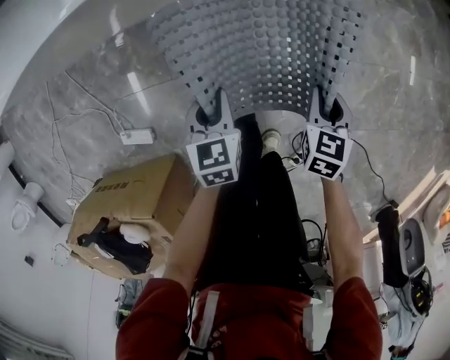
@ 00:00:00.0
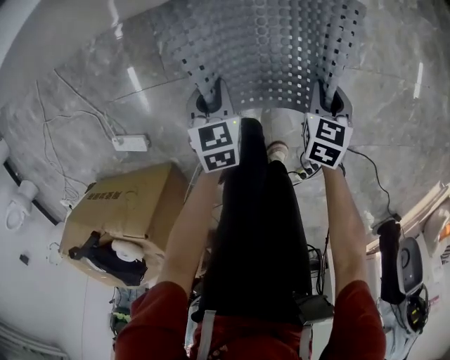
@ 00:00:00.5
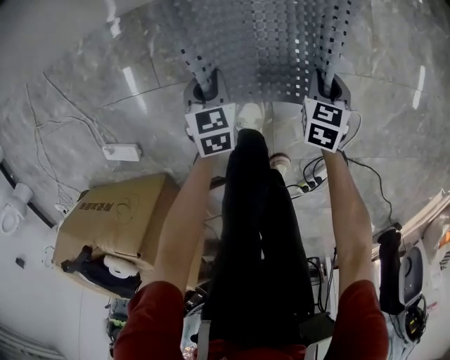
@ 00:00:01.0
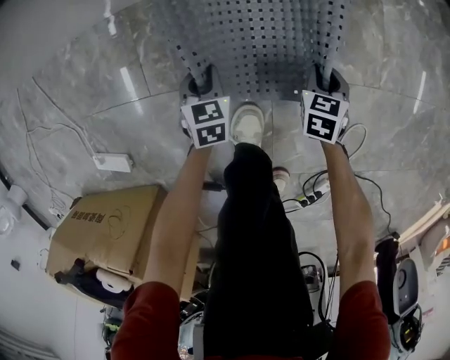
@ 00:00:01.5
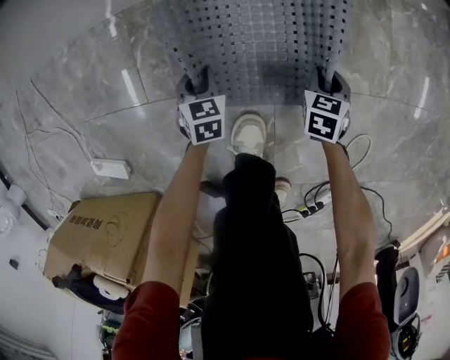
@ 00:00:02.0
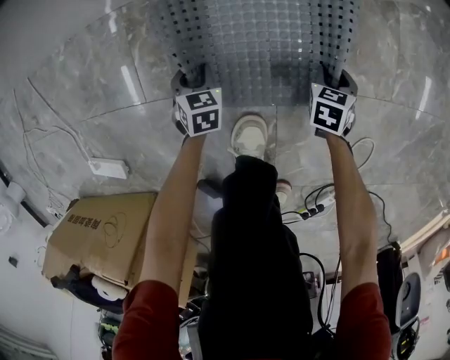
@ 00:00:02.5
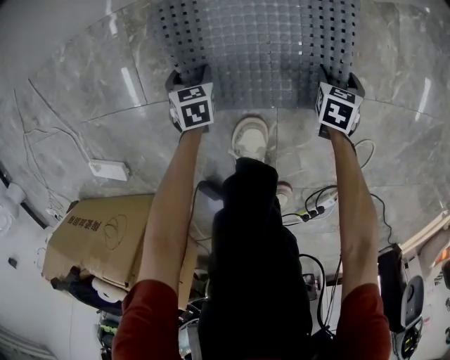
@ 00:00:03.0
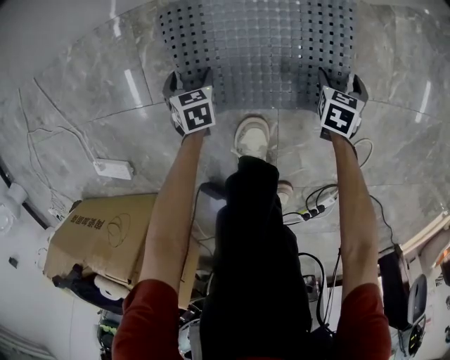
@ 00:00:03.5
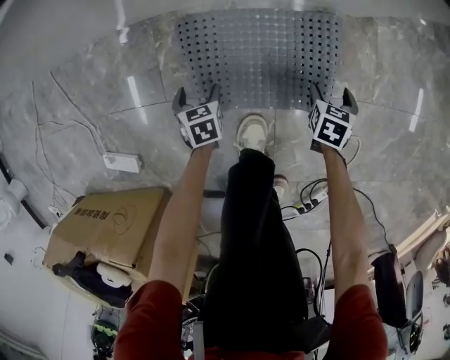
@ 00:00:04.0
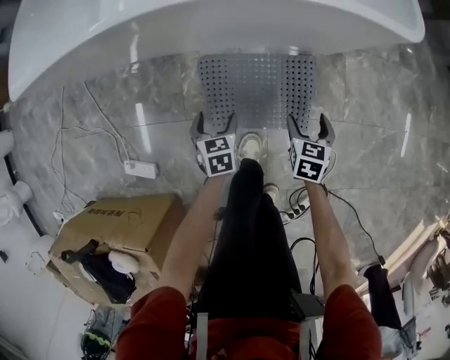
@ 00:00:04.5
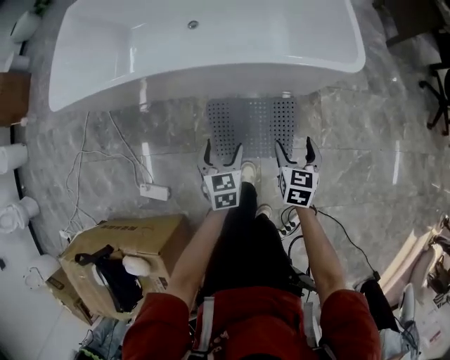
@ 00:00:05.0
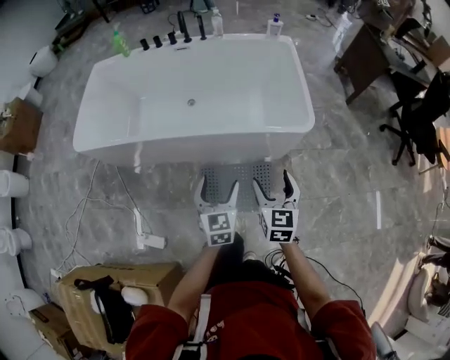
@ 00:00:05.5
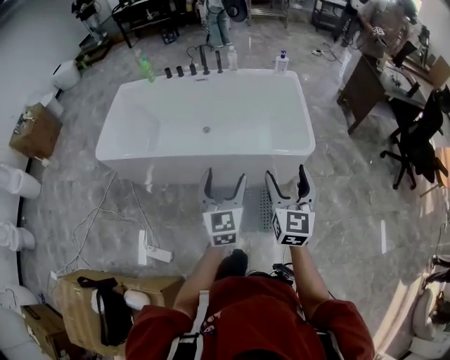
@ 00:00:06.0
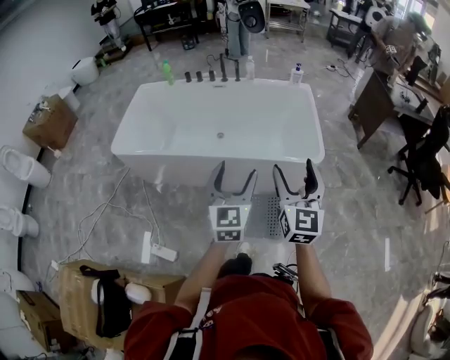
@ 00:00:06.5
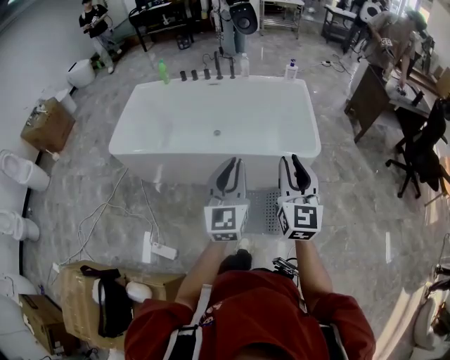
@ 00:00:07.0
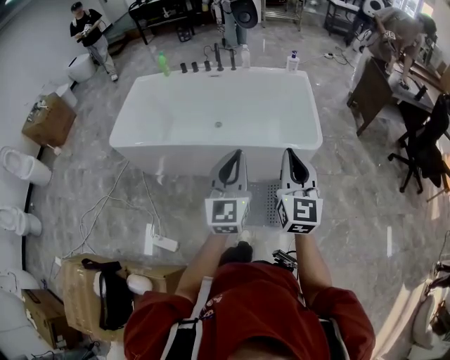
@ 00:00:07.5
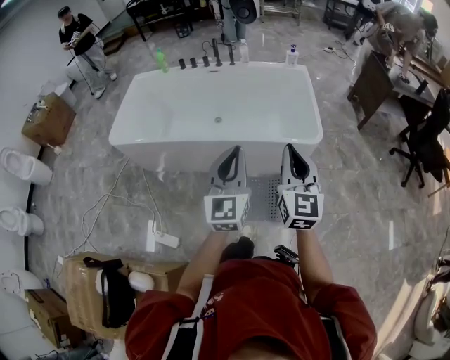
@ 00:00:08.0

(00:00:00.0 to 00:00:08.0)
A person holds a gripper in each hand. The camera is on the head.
00:00:00.0 - 00:00:02.0: Both grippers move downward, approximately 40 cm.
00:00:02.0 - 00:00:04.0: The grippers both shift upward by some 5 cm. The right gripper opens. The left gripper opens its fingers.
00:00:04.0 - 00:00:06.0: Both grippers move upward, about 90 cm. The left gripper points its fingers roughly 50 degrees further upward. Meanwhile the right gripper tips its fingers upward by approximately 60 degrees.
00:00:06.0 - 00:00:08.0: The left gripper is displaced upward by some 10 cm, and closes up; the right gripper goes roughly 5 cm upward, and closes up.

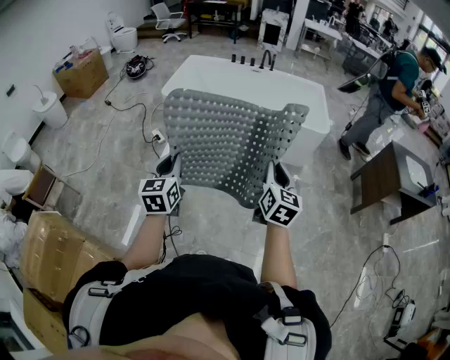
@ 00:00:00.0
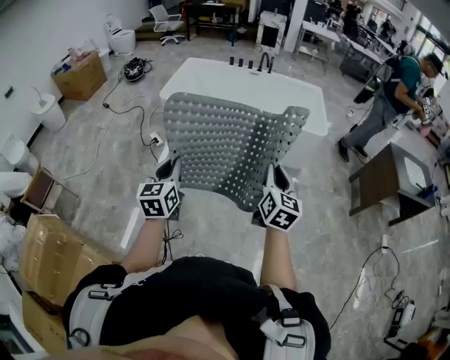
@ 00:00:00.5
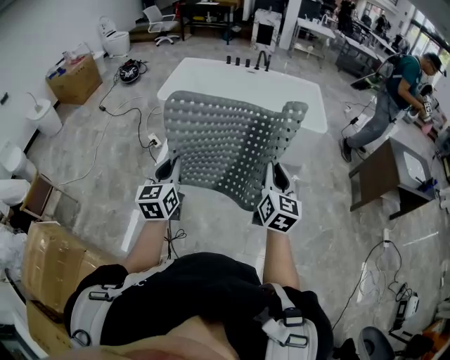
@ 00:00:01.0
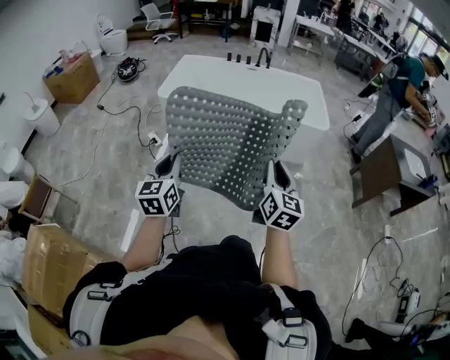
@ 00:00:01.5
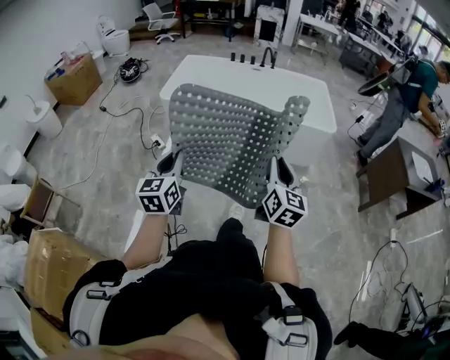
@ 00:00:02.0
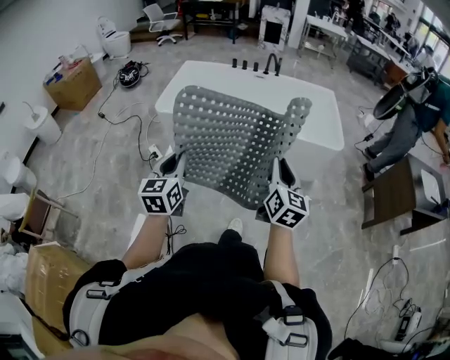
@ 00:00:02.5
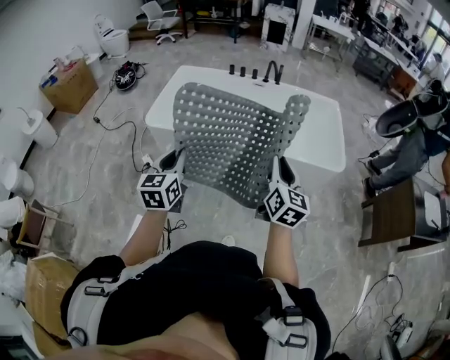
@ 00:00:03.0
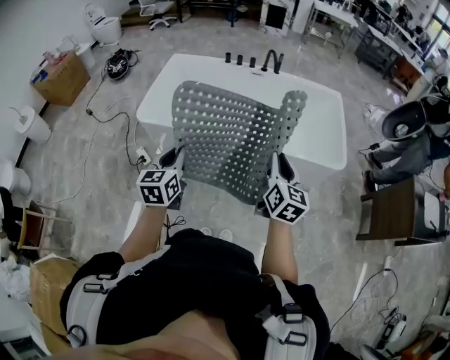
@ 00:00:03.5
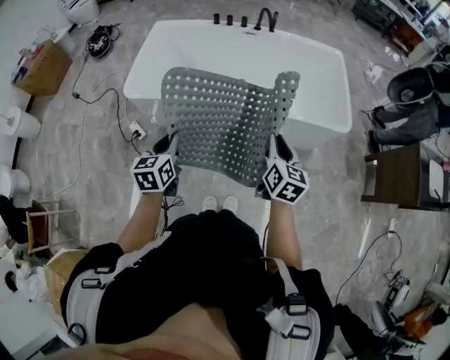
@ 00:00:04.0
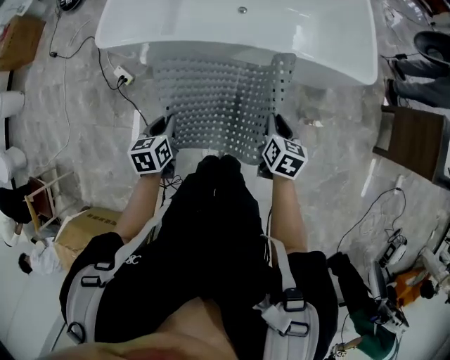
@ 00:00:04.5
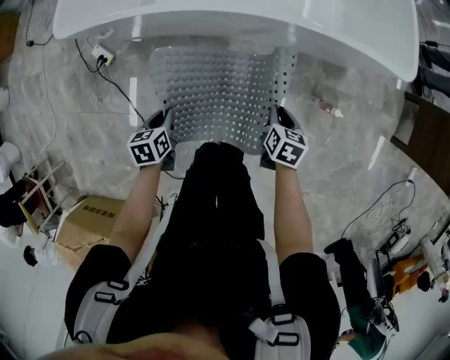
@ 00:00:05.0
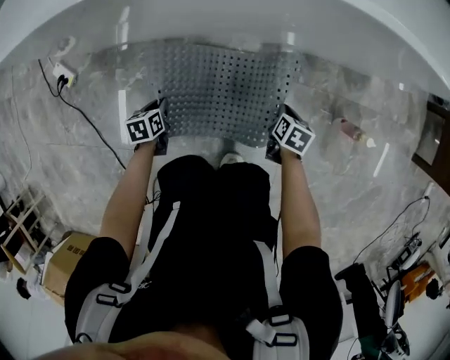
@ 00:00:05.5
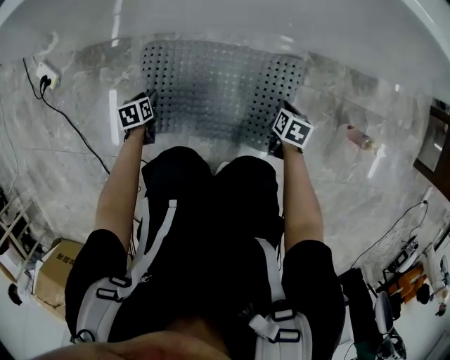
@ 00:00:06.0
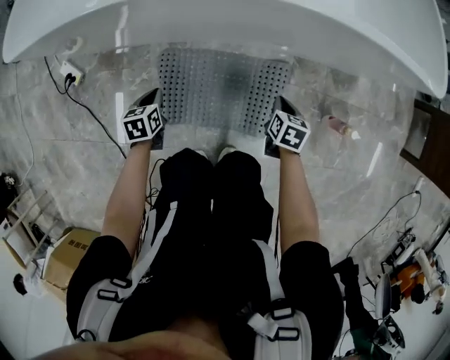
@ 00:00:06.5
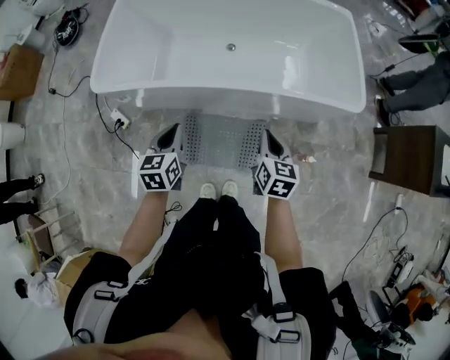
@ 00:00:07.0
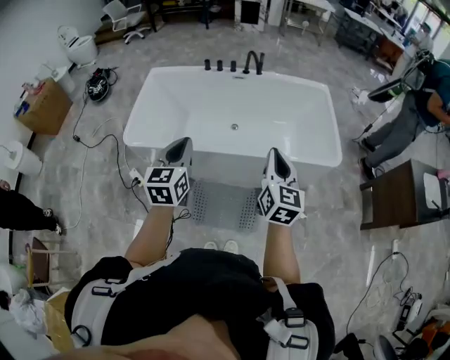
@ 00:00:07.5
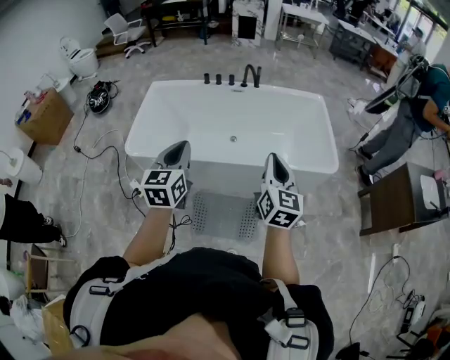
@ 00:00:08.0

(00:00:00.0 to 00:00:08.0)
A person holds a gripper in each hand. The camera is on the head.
00:00:00.0 - 00:00:02.0: The left gripper travels forward and to the left by approximately 10 cm. The right gripper is displaced to the left and forward by approximately 10 cm.
00:00:02.0 - 00:00:04.0: Both grippers are carried forward, about 40 cm. The left gripper swivels some 20 degrees.
00:00:04.0 - 00:00:06.0: Both grippers travel together downward, approximately 90 cm. The right gripper tilts its fingers about 40 degrees downward, while the left gripper points its fingers some 40 degrees further downward, and opens its fingers.
00:00:06.0 - 00:00:08.0: Both grippers move upward, roughly 1 m. The right gripper tips its fingers upward by approximately 60 degrees. Meanwhile the left gripper points its fingers roughly 60 degrees further upward, and closes its fingers.

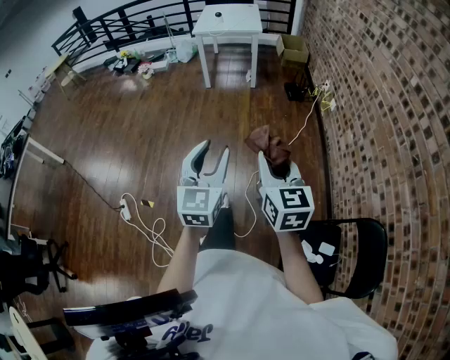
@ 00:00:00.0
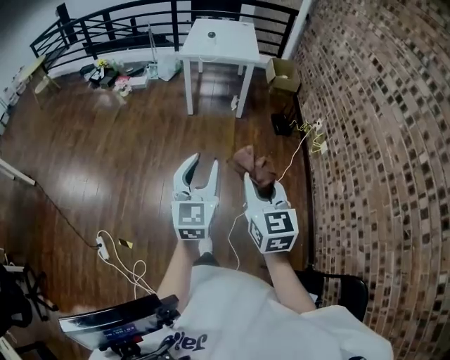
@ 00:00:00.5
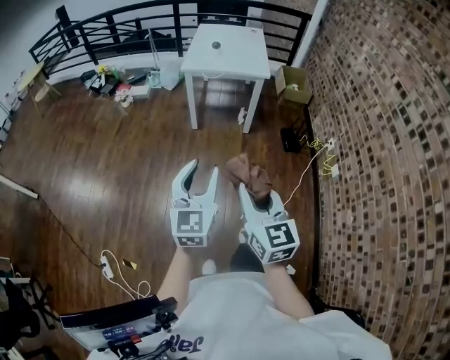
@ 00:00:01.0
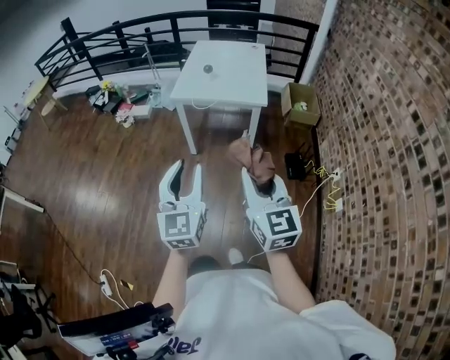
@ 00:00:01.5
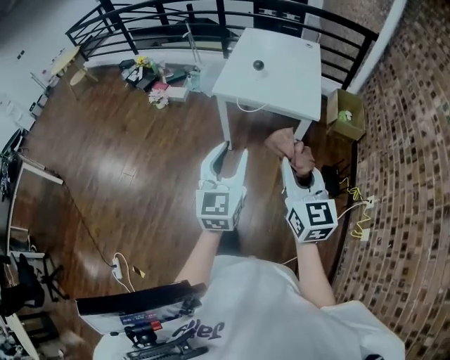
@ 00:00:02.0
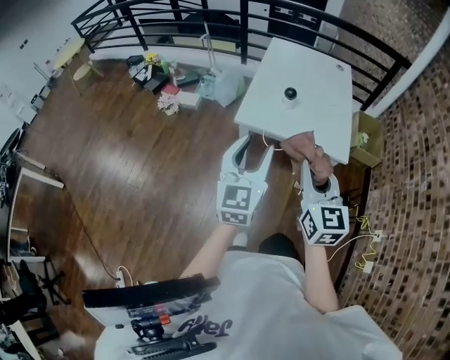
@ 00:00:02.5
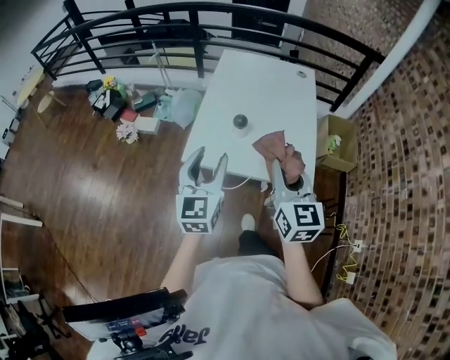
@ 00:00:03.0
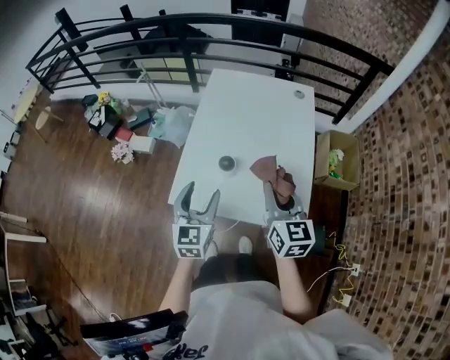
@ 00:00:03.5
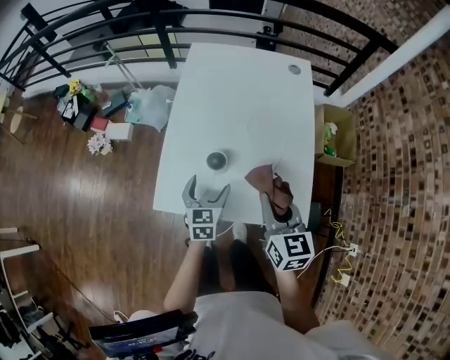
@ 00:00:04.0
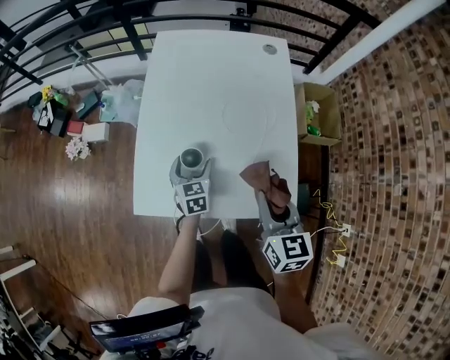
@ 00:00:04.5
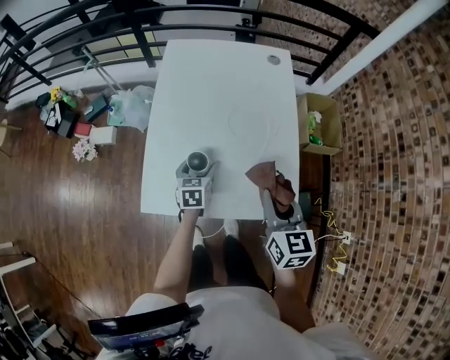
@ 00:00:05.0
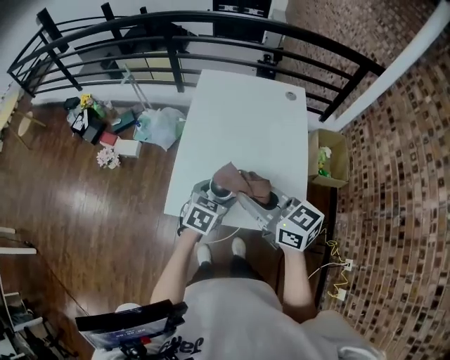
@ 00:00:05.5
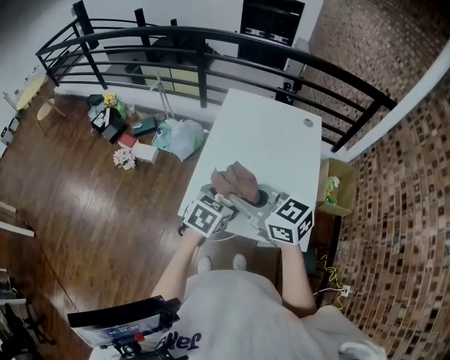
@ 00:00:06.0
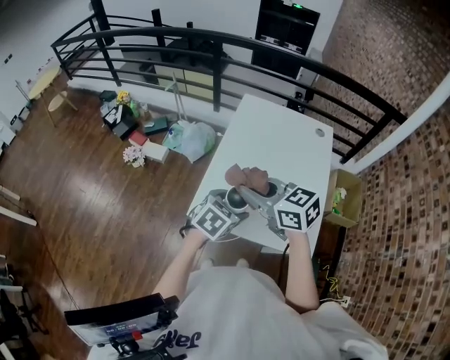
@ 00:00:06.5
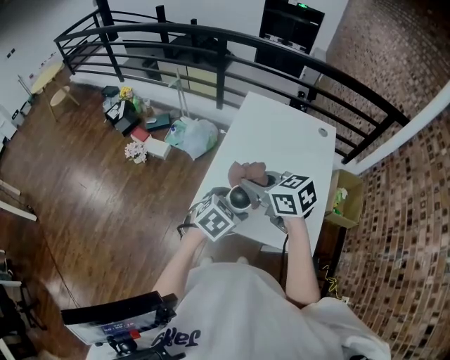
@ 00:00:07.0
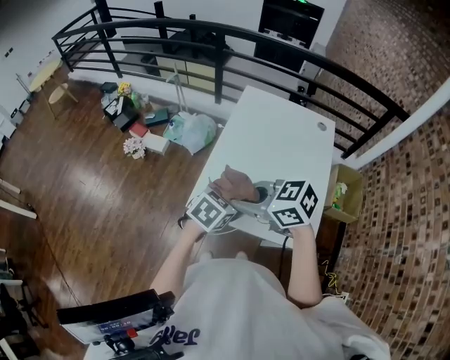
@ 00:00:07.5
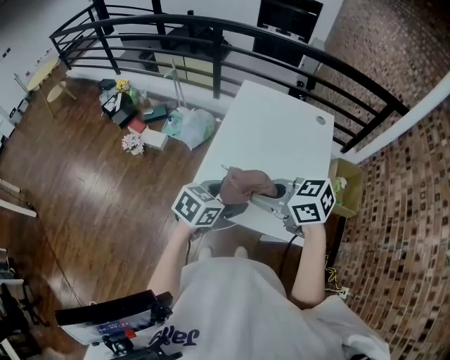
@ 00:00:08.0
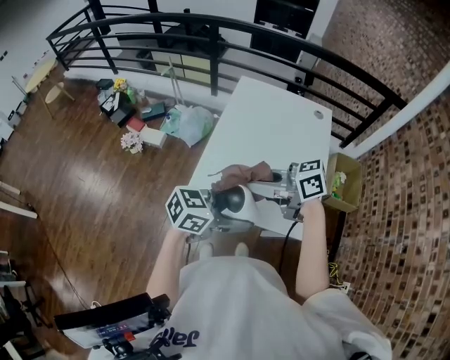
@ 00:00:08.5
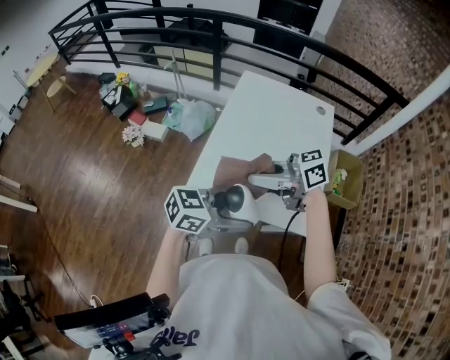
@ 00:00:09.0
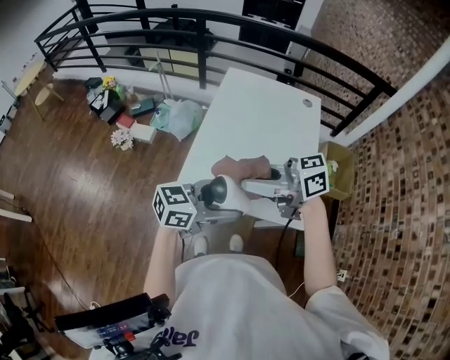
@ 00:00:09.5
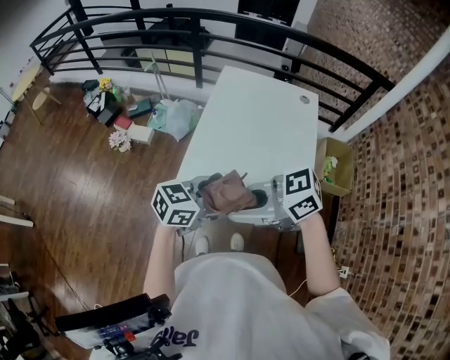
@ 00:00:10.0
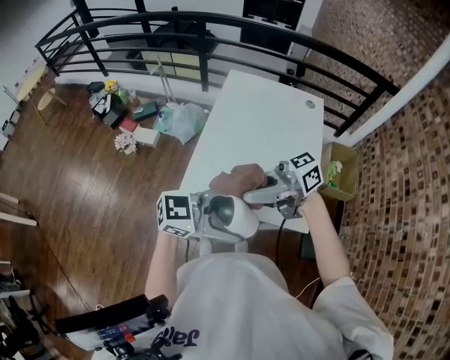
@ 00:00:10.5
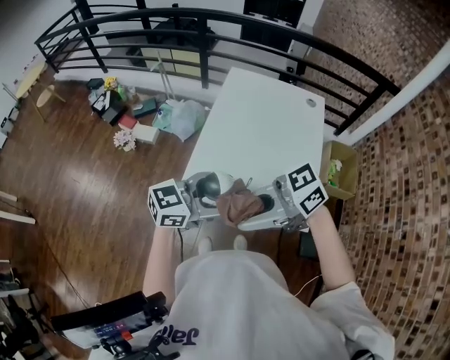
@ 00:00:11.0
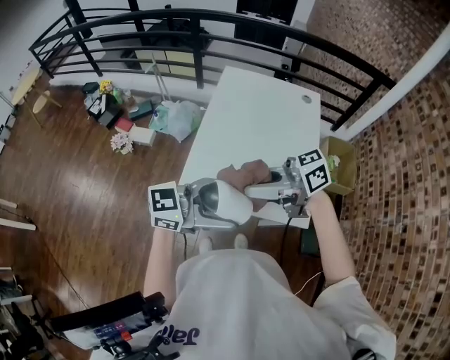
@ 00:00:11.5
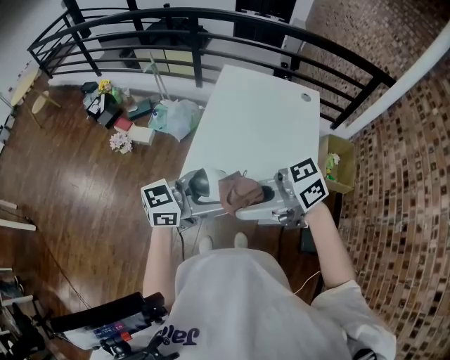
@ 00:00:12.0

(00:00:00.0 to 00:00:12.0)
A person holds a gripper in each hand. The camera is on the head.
00:00:00.0 - 00:00:02.0: The pair of grippers is taken forward, some 90 cm.
00:00:02.0 - 00:00:04.0: The pair of grippers is taken forward, some 60 cm. The right gripper turns by about 20 degrees. Meanwhile the left gripper moves downward, about 30 cm, rotates roughly 30 degrees, and opens up.
00:00:04.0 - 00:00:06.0: The left gripper moves upward, some 15 cm, and turns by some 20 degrees; the right gripper shifts approximately 20 cm to the left and upward, and rotates approximately 50 degrees.
00:00:06.0 - 00:00:08.0: The right gripper rotates about 20 degrees.
00:00:08.0 - 00:00:10.0: The right gripper shifts by roughly 10 cm, and rotates about 30 degrees, while the left gripper turns by about 20 degrees.
